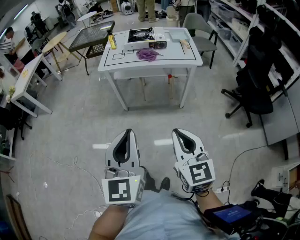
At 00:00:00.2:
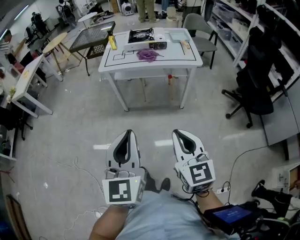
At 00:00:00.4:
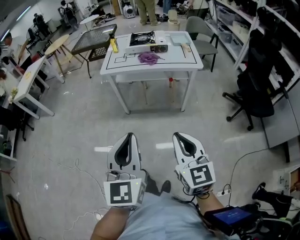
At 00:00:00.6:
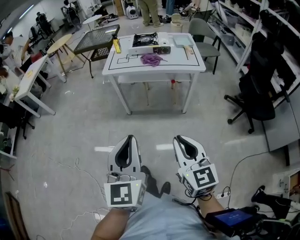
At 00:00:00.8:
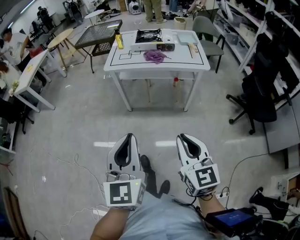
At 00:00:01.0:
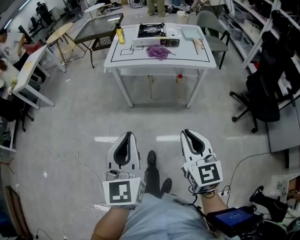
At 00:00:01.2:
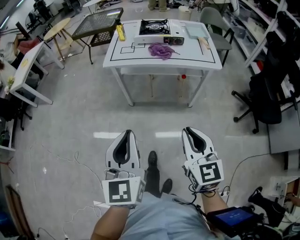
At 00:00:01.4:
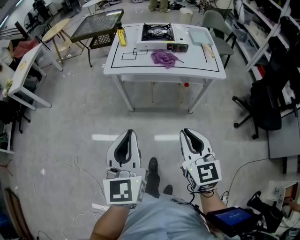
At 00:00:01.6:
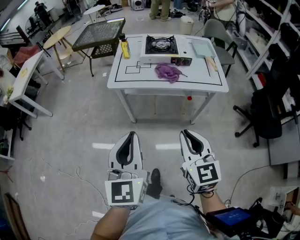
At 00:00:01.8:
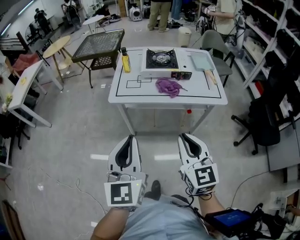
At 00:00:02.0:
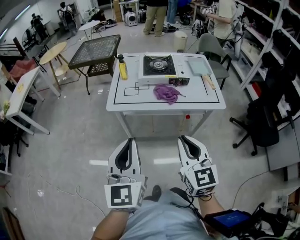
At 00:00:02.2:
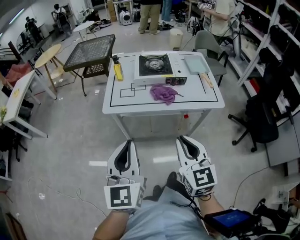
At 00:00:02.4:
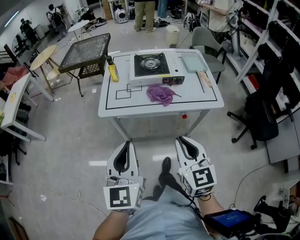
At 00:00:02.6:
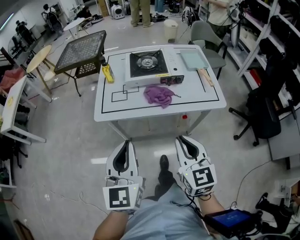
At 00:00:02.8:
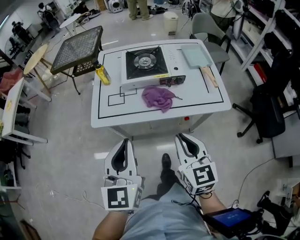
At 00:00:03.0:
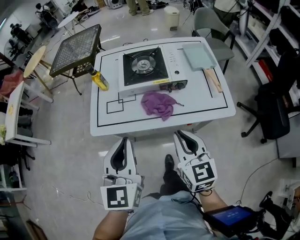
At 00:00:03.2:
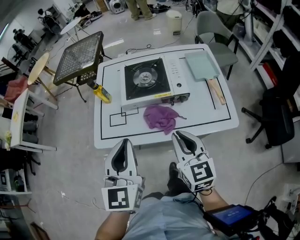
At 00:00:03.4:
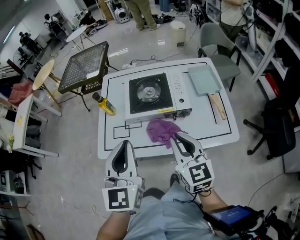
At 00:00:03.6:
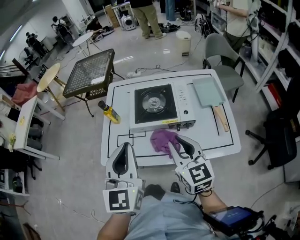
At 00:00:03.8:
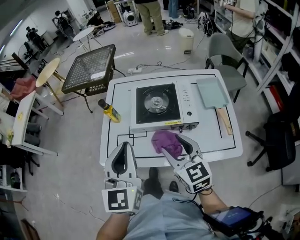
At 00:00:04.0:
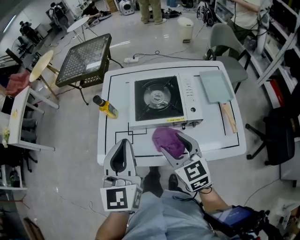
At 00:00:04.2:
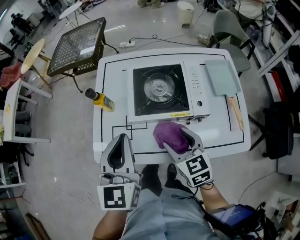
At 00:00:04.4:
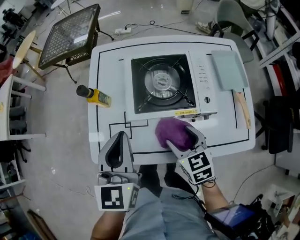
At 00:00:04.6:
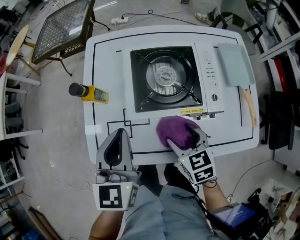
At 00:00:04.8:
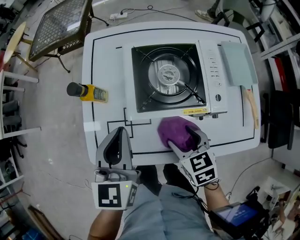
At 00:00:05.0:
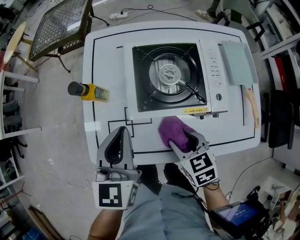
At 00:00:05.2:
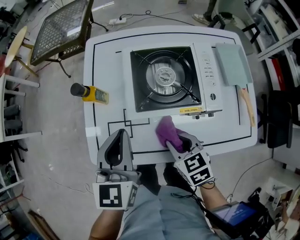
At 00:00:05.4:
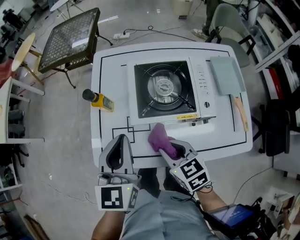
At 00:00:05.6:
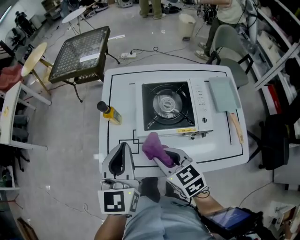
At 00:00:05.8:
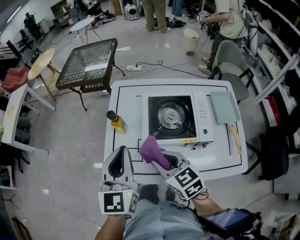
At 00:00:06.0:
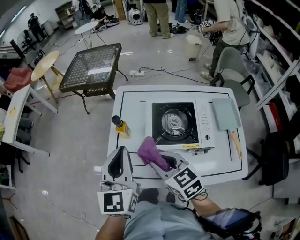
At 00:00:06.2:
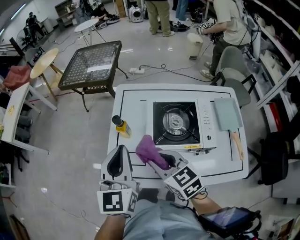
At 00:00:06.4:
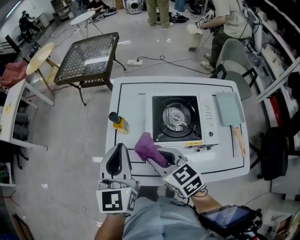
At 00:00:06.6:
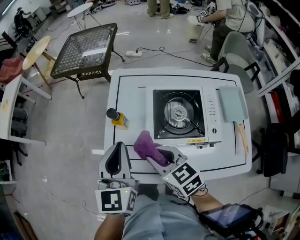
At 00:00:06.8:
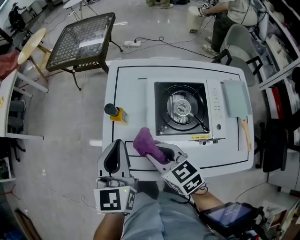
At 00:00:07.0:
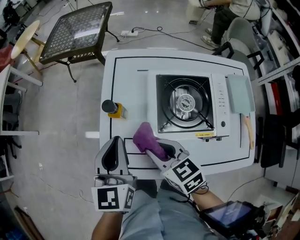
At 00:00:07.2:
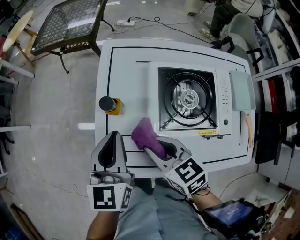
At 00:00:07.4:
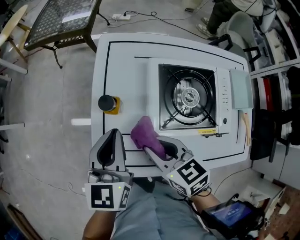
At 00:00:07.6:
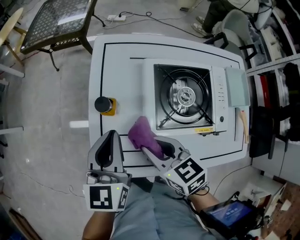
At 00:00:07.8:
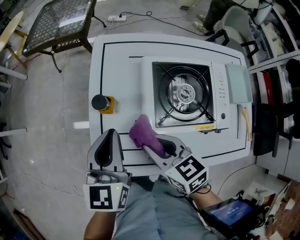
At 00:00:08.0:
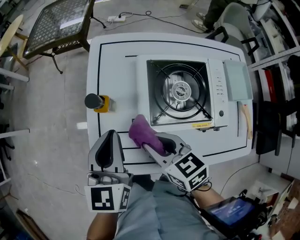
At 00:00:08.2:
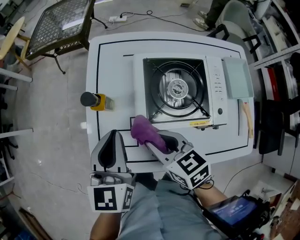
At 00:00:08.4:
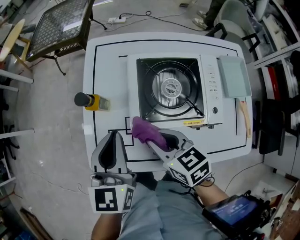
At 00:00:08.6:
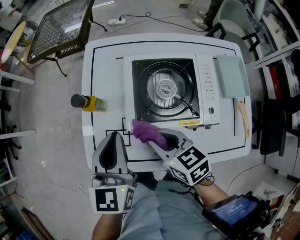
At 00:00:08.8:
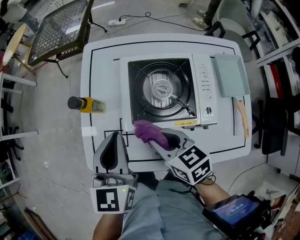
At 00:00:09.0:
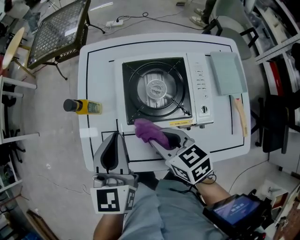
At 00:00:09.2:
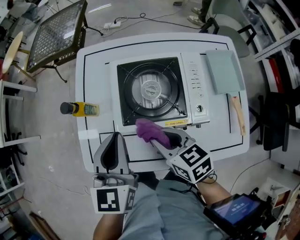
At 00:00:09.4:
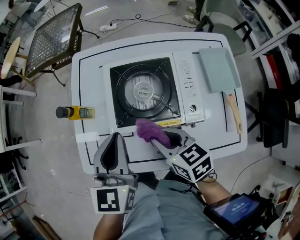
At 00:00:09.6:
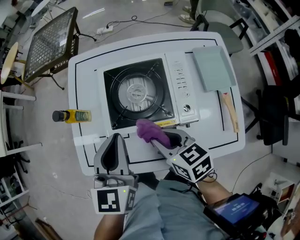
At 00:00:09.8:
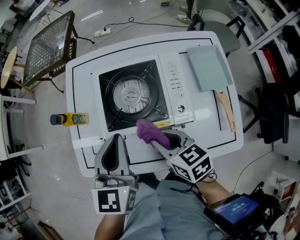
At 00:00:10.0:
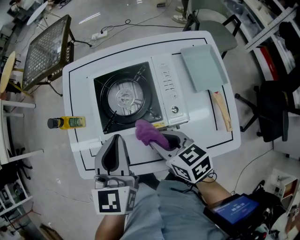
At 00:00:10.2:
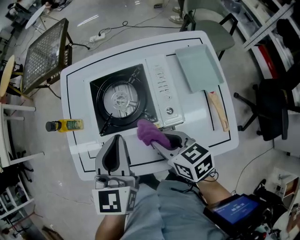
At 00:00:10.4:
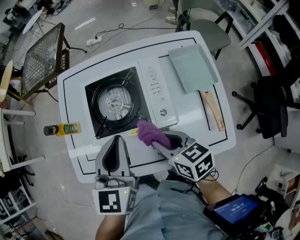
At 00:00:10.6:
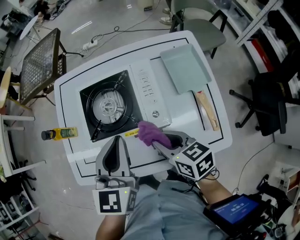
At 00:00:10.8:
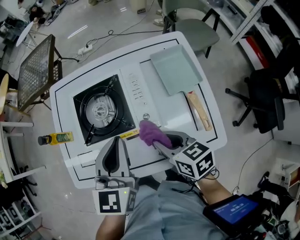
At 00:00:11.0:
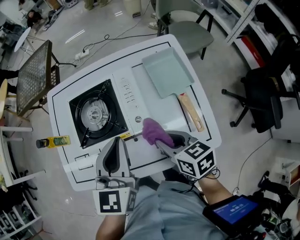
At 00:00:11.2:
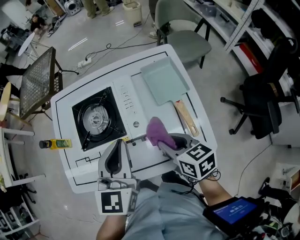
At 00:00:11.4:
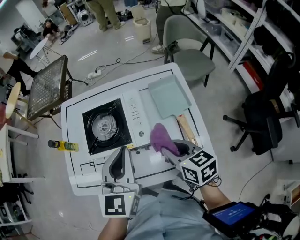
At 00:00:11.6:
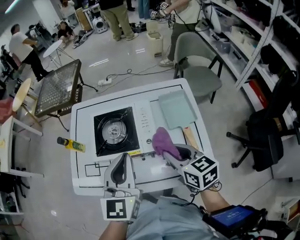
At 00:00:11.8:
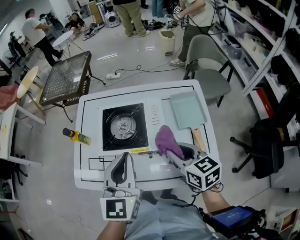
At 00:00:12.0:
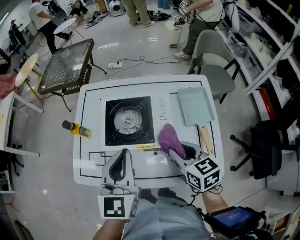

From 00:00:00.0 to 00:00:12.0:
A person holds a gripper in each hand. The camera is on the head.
From 00:00:00.0 to 00:00:01.6: Both grippers travel together forward, about 25 cm.
From 00:00:01.6 to 00:00:03.0: Both grippers travel together forward, about 30 cm.
From 00:00:03.0 to 00:00:04.4: The right gripper goes approximately 25 cm forward and downward, swivels roughly 30 degrees, and opens, while the left gripper heads forward, covering some 25 cm.
From 00:00:04.4 to 00:00:06.0: The left gripper heads upward and to the left, covering some 10 cm. Meanwhile the right gripper moves upward and to the left, about 20 cm, rotates roughly 20 degrees, and closes up.
From 00:00:06.0 to 00:00:07.6: Both grippers travel together downward and forward, some 15 cm.
From 00:00:07.6 to 00:00:09.0: The two grippers go some 15 cm to the right and backward.
From 00:00:09.0 to 00:00:10.4: The left gripper travels to the right by roughly 15 cm; the right gripper moves to the right and backward, some 15 cm.
From 00:00:10.4 to 00:00:12.0: The left gripper heads upward, covering approximately 5 cm, and moves about 10 cm to the right and comes back. The right gripper goes approximately 10 cm upward and to the right.

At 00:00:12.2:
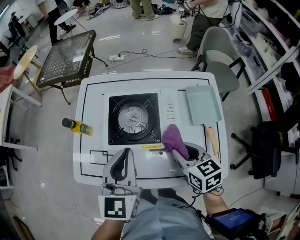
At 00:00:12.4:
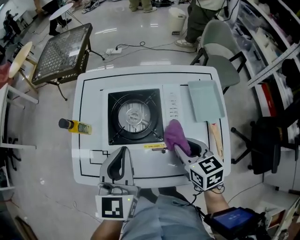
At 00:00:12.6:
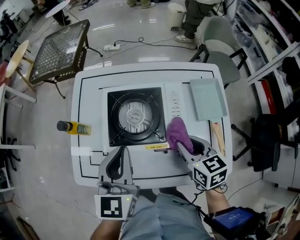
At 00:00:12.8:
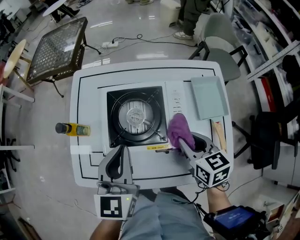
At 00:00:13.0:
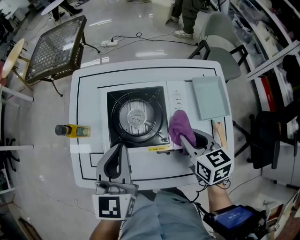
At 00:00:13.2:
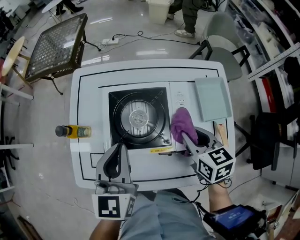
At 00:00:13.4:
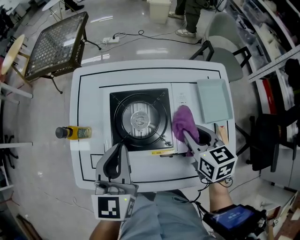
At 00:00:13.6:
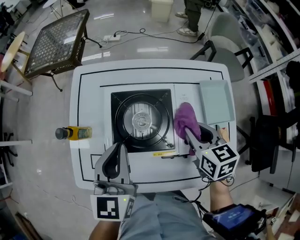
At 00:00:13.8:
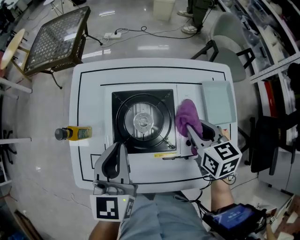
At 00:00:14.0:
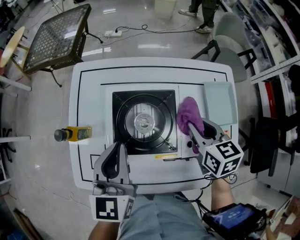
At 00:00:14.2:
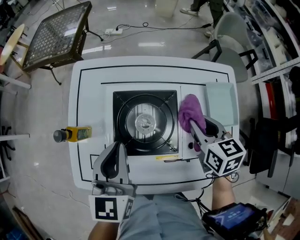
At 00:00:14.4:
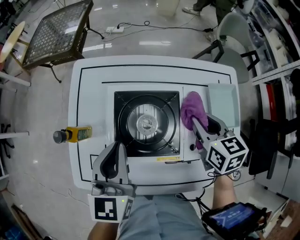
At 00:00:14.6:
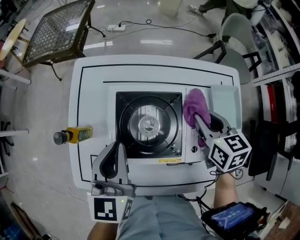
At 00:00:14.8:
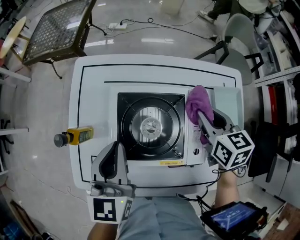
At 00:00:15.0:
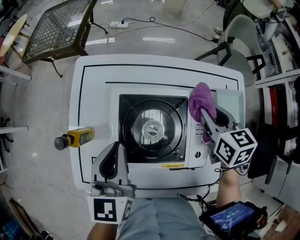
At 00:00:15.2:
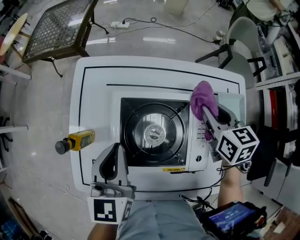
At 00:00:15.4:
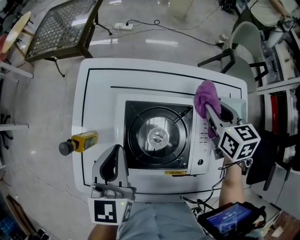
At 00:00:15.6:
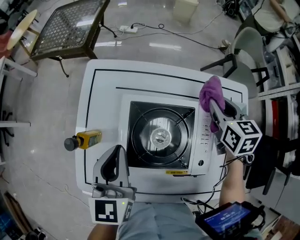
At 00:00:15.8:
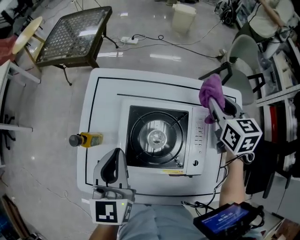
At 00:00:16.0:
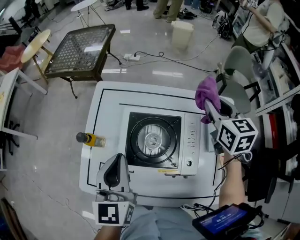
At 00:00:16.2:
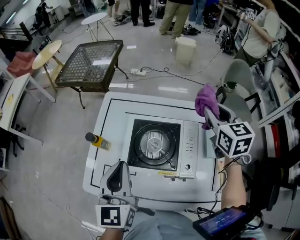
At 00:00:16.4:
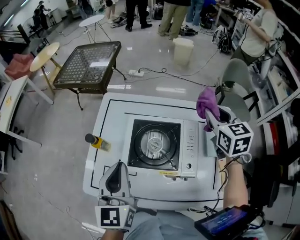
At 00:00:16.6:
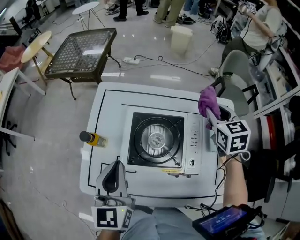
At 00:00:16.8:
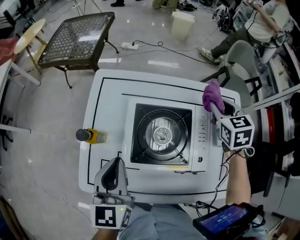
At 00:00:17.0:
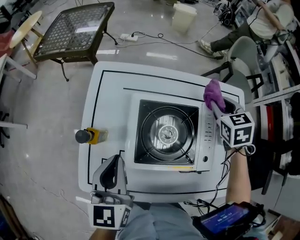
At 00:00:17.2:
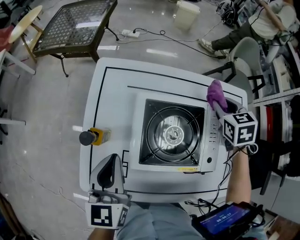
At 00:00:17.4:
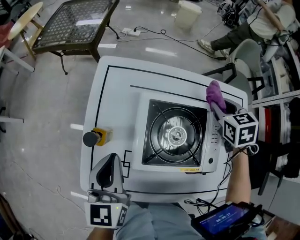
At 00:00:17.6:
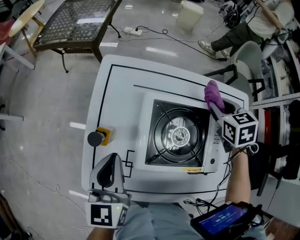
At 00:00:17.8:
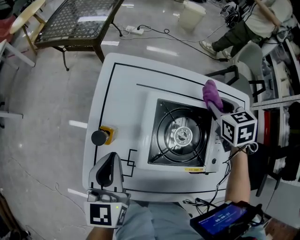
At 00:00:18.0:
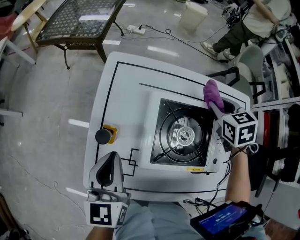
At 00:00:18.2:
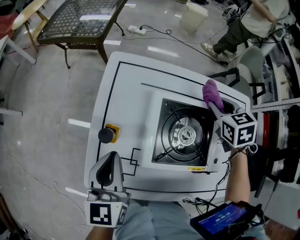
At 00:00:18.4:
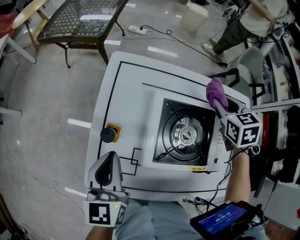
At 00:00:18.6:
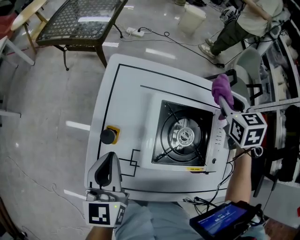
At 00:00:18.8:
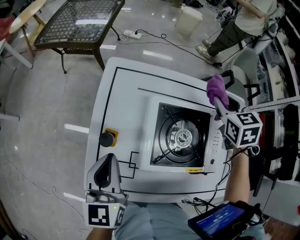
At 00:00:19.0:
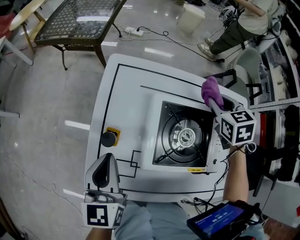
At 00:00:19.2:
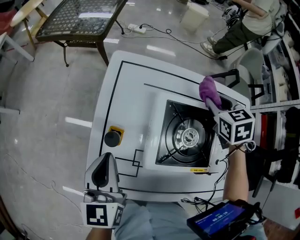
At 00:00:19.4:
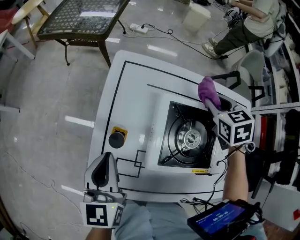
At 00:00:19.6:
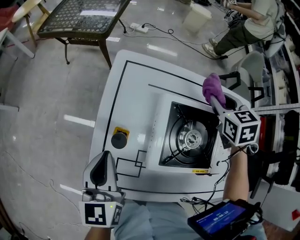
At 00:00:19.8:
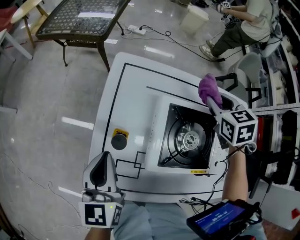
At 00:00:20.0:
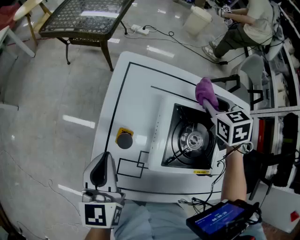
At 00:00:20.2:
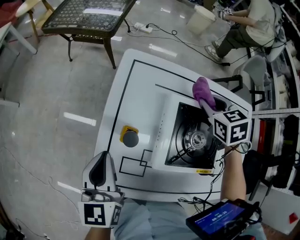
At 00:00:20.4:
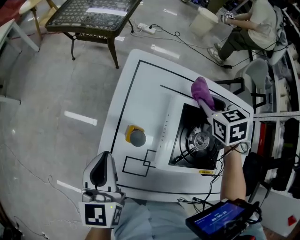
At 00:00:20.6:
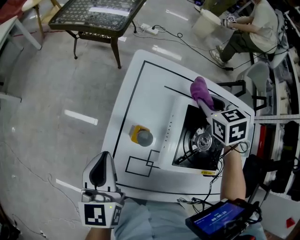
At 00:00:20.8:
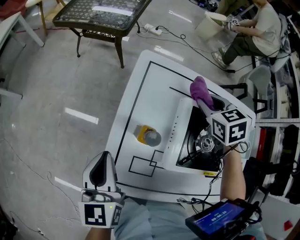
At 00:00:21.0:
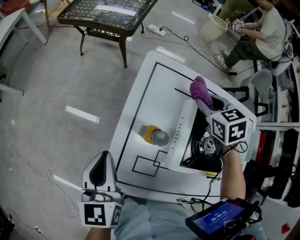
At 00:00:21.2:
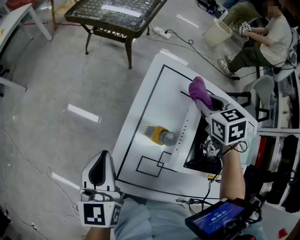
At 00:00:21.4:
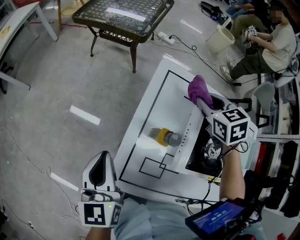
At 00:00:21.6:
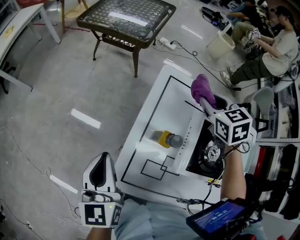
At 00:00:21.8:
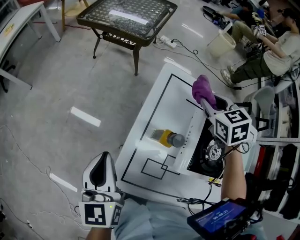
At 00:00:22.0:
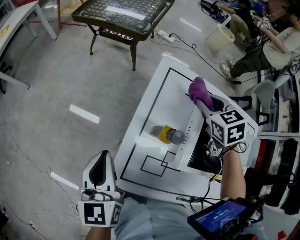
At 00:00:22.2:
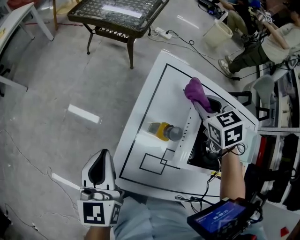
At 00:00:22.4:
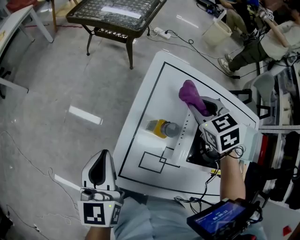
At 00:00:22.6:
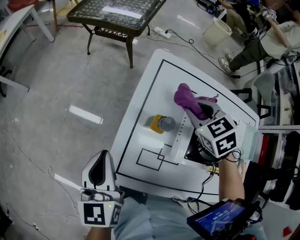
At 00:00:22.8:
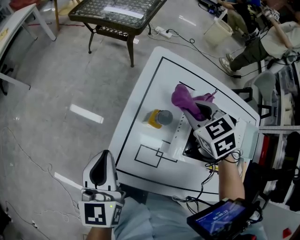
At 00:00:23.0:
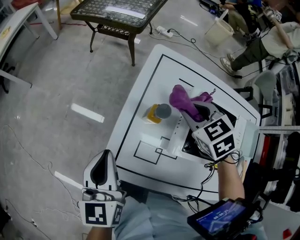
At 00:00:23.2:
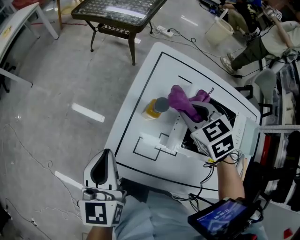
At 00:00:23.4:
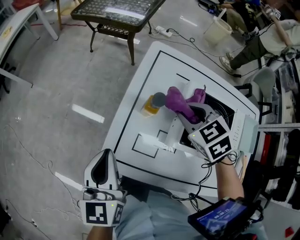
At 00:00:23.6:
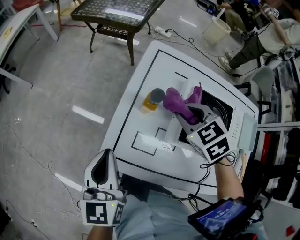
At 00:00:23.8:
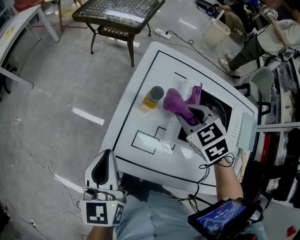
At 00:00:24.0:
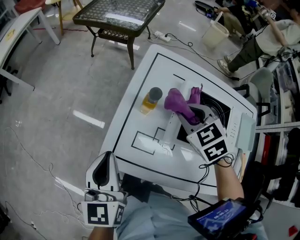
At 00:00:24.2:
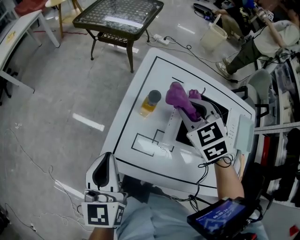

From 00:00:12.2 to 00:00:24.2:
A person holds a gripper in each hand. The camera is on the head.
From 00:00:12.2 to 00:00:13.8: The left gripper moves forward and to the left, roughly 10 cm, while the right gripper moves forward, roughly 15 cm.
From 00:00:13.8 to 00:00:15.2: The right gripper goes roughly 10 cm forward. Meanwhile the left gripper goes about 5 cm forward.
From 00:00:15.2 to 00:00:16.6: The right gripper heads upward, covering about 10 cm. Meanwhile the left gripper travels backward and upward by some 10 cm.
From 00:00:16.6 to 00:00:18.2: Both grippers travel together to the left and downward, about 15 cm.
From 00:00:18.2 to 00:00:19.8: The two grippers go some 5 cm to the left.
From 00:00:19.8 to 00:00:21.2: Both grippers travel together to the left, about 15 cm.
From 00:00:21.2 to 00:00:22.6: The right gripper moves backward and to the left, about 10 cm.
From 00:00:22.6 to 00:00:24.2: The two grippers go about 10 cm backward.
